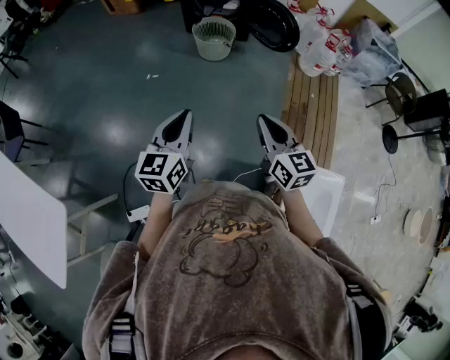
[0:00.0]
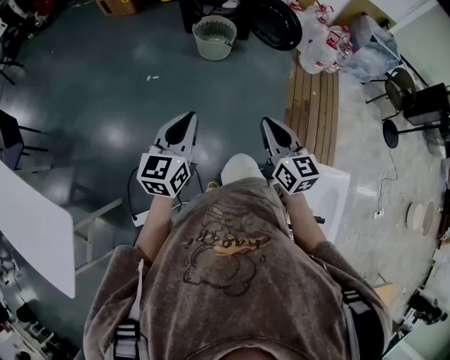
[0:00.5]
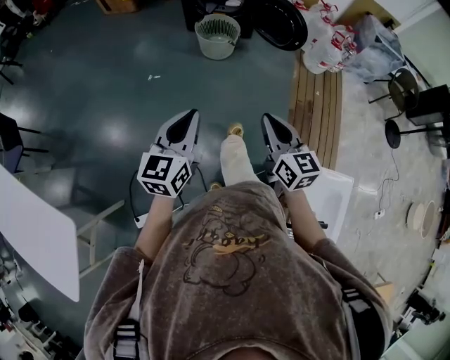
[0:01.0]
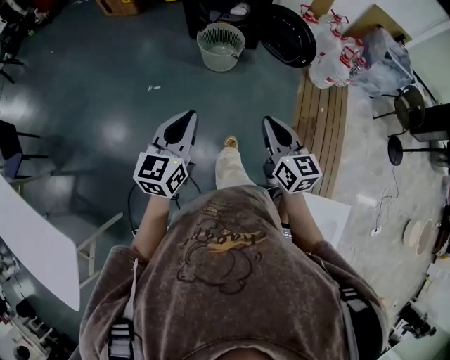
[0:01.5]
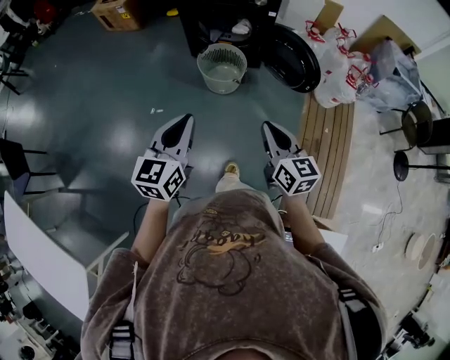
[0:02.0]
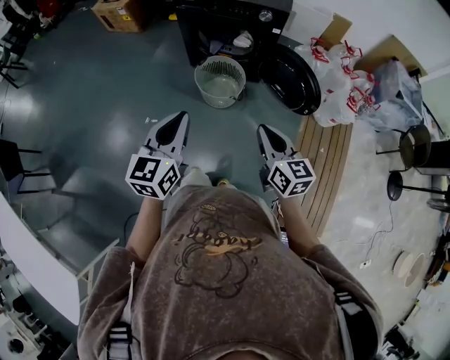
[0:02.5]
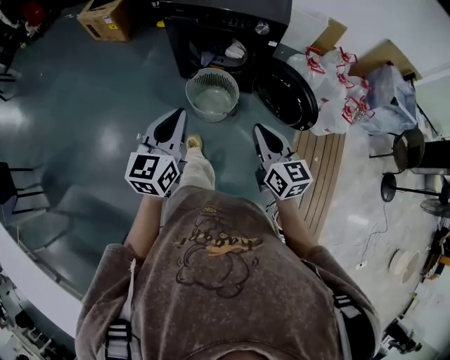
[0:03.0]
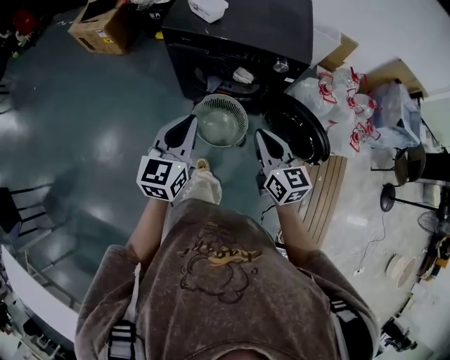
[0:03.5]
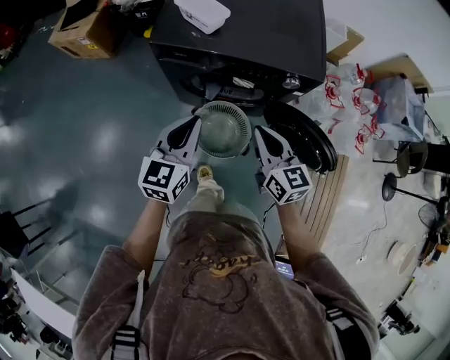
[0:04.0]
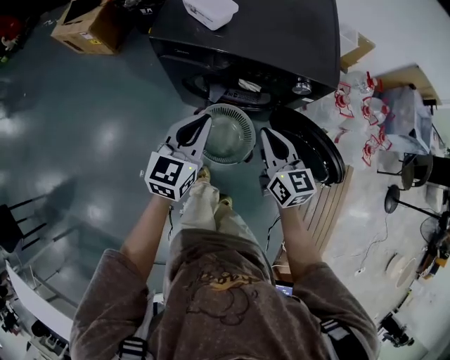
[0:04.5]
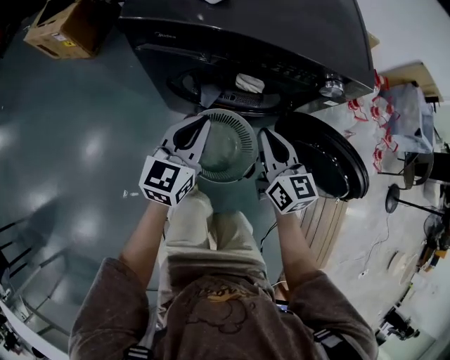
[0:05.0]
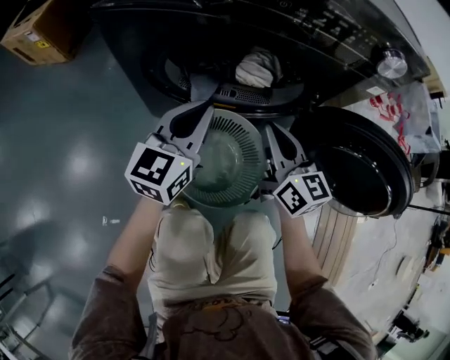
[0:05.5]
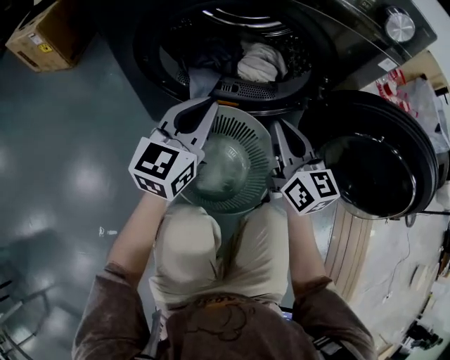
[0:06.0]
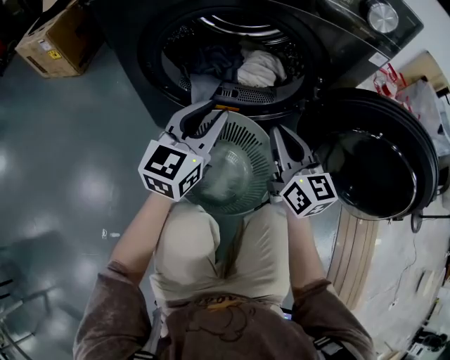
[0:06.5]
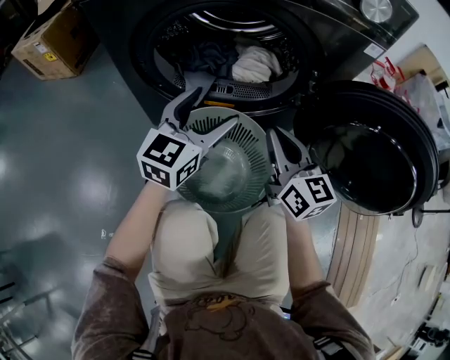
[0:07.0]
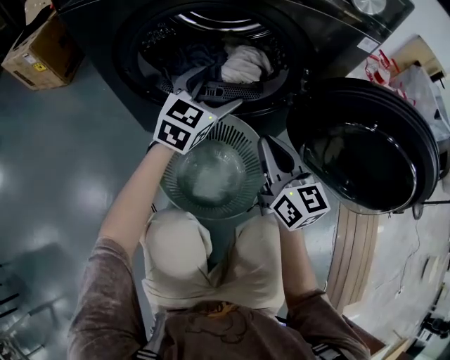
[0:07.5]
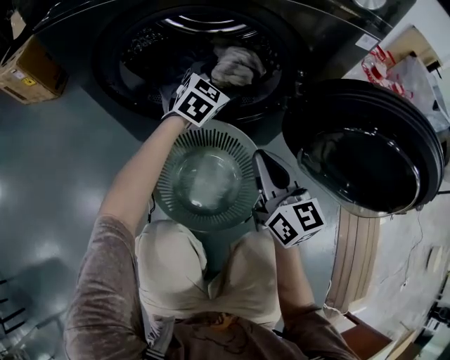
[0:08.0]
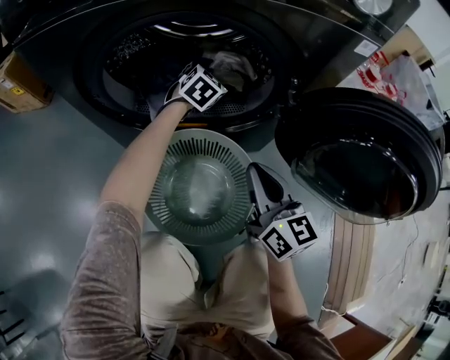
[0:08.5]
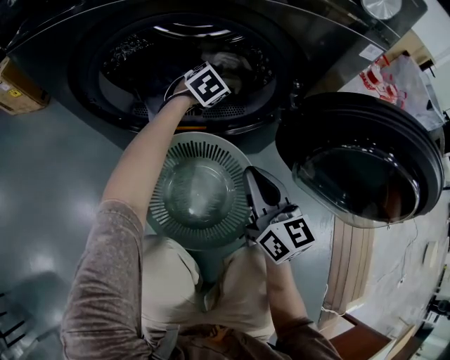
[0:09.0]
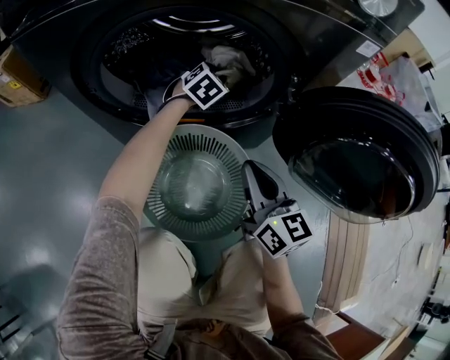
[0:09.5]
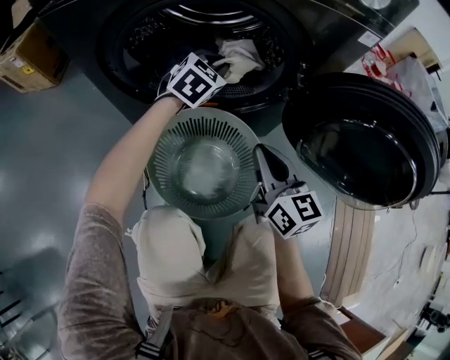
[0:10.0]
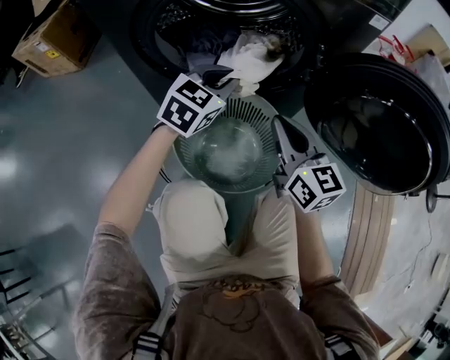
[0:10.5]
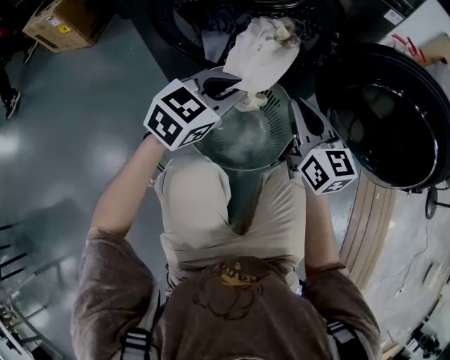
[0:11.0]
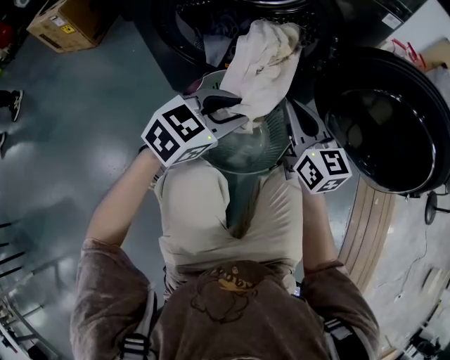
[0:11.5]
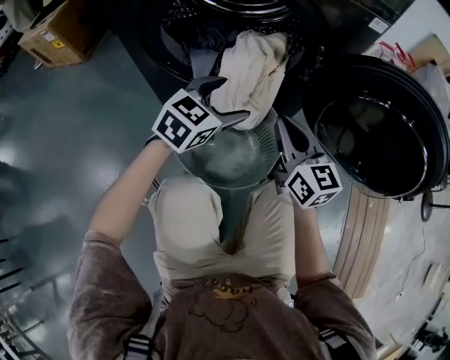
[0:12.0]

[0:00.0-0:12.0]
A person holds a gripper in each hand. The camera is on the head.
0:00.0 to 0:02.0: The grippers both shift forward by about 35 cm.
0:02.0 to 0:04.0: Both grippers are carried forward, about 60 cm.
0:04.0 to 0:06.0: The grippers both shift downward by roughly 40 cm.
0:06.0 to 0:08.0: The left gripper moves forward, to the right and downward, about 25 cm, rotates approximately 40 degrees, and opens. The right gripper ends up roughly 5 cm from where it was.
0:08.0 to 0:10.0: The left gripper goes downward and returns, some 10 cm each way, and closes.
0:10.0 to 0:12.0: The left gripper travels backward by some 20 cm, and opens up.

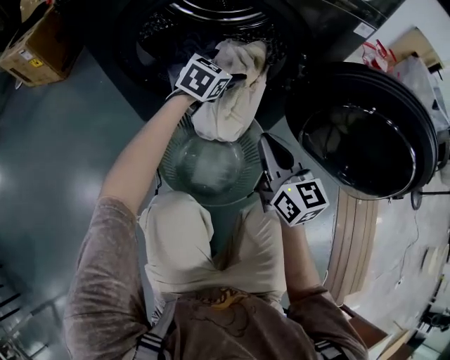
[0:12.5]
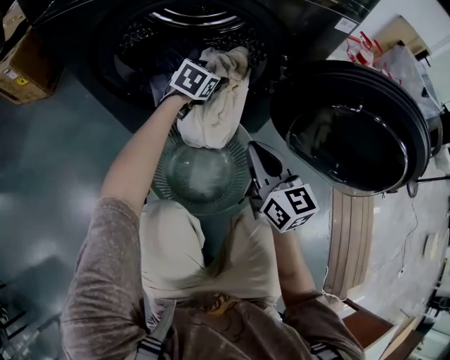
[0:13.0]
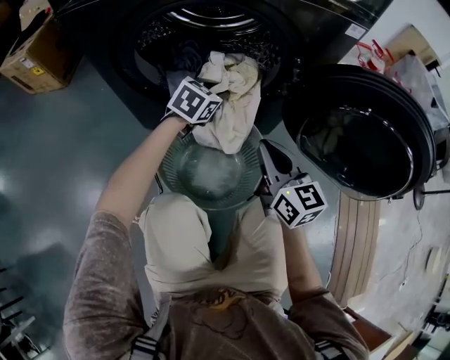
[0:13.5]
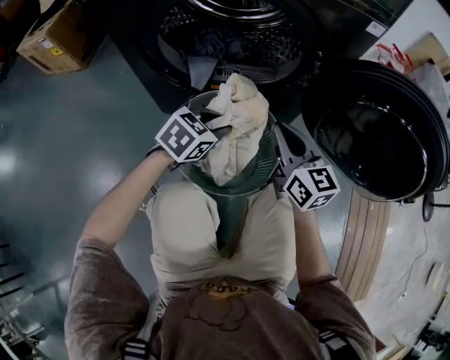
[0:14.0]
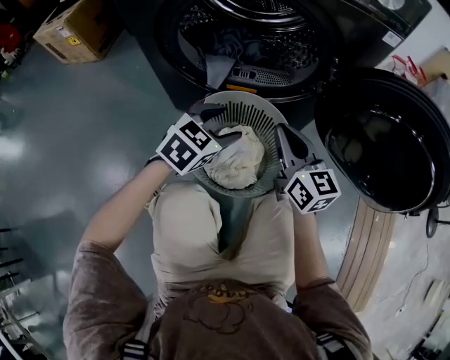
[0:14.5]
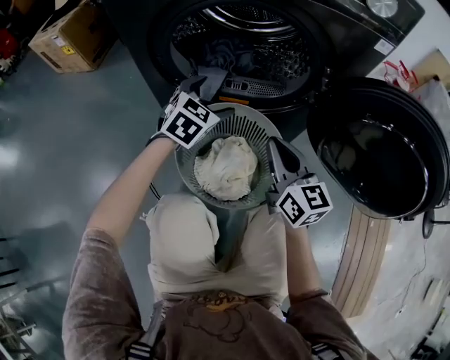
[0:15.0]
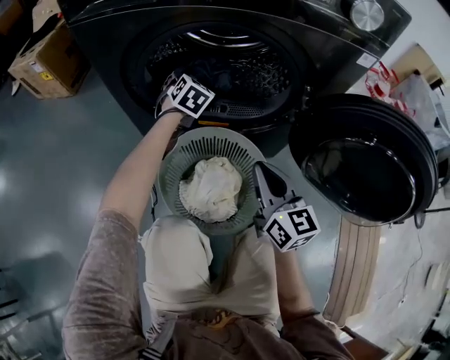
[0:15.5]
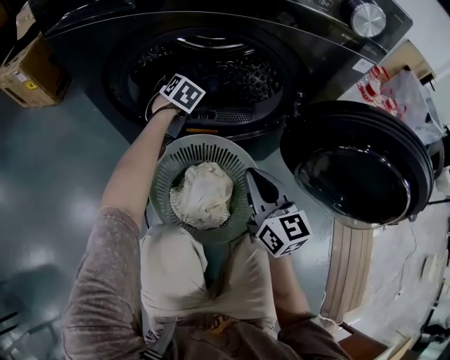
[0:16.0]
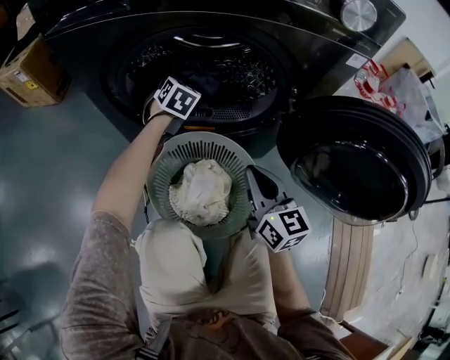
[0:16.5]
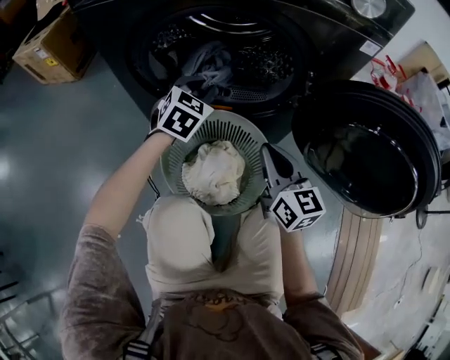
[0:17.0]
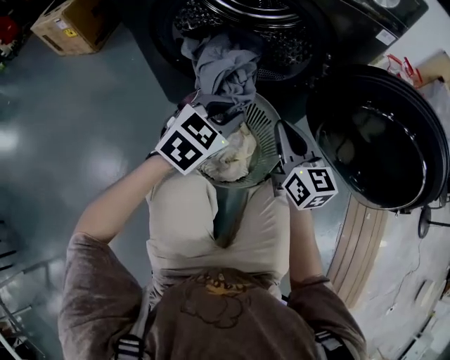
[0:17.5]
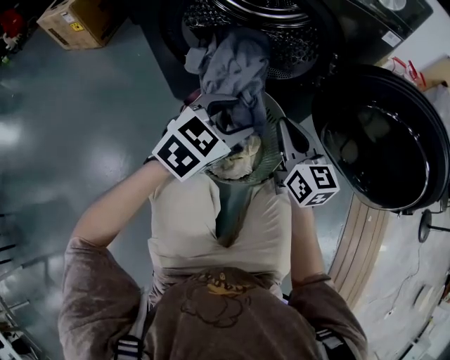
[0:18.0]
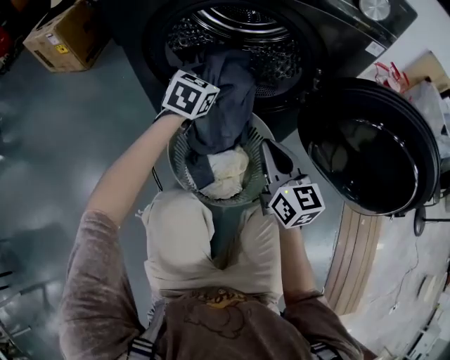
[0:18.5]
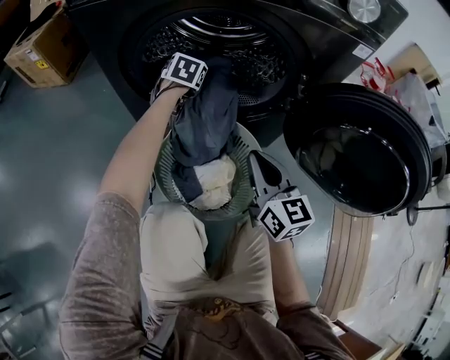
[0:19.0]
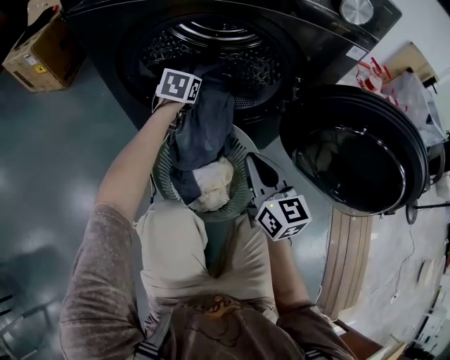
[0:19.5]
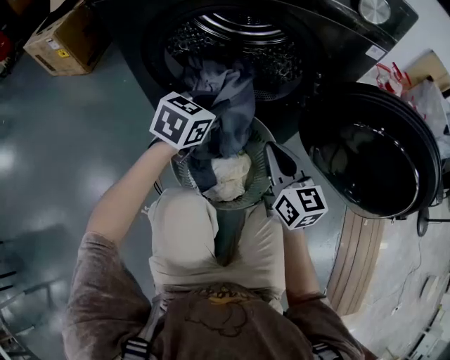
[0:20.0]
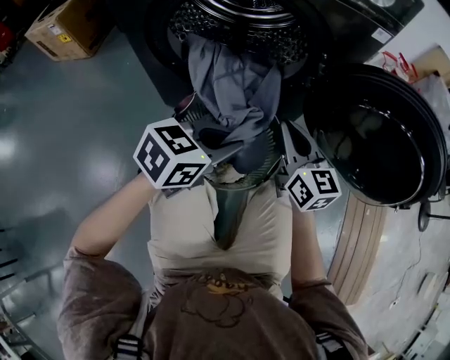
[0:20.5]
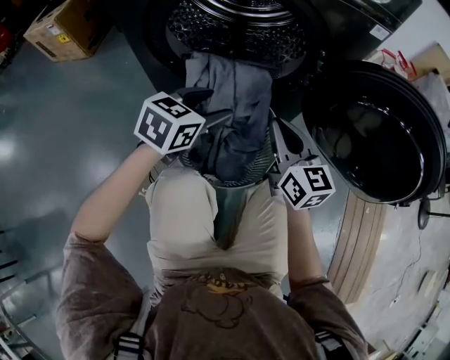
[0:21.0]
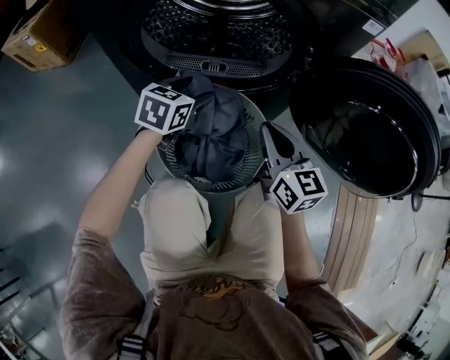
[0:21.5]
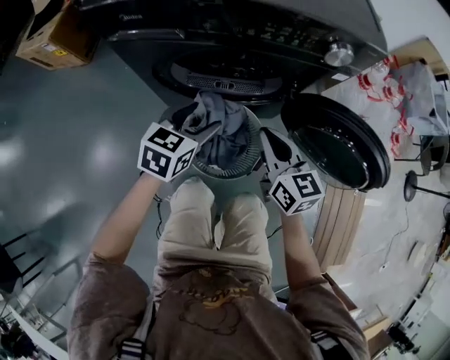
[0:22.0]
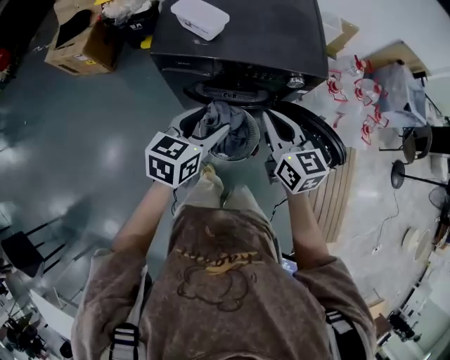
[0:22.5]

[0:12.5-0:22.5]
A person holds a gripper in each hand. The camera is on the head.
0:12.5 to 0:14.5: The left gripper heads backward, covering some 20 cm, and closes, then reopens.
0:14.5 to 0:16.5: The left gripper heads forward, covering roughly 30 cm, swivels some 30 degrees, and closes its fingers.
0:16.5 to 0:18.5: The left gripper moves backward, about 15 cm, swivels roughly 20 degrees, and opens.
0:18.5 to 0:20.5: The left gripper shifts some 20 cm backward, turns by approximately 30 degrees, and closes up.
0:20.5 to 0:22.5: Both grippers travel together upward, roughly 50 cm. The left gripper rotates roughly 20 degrees, and opens its fingers.

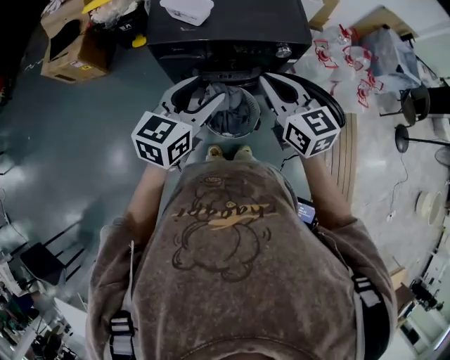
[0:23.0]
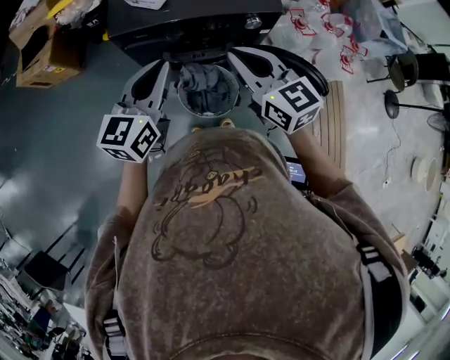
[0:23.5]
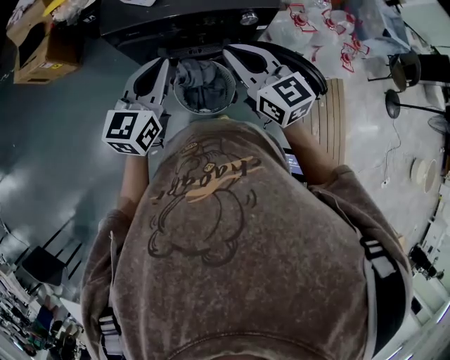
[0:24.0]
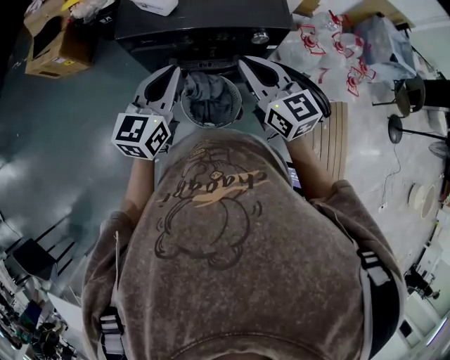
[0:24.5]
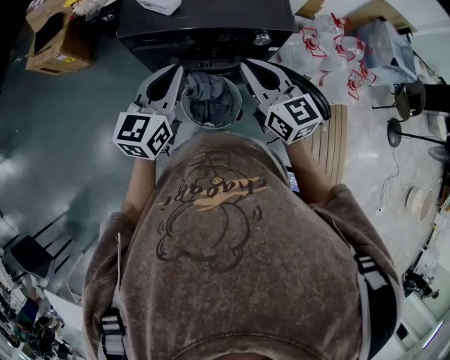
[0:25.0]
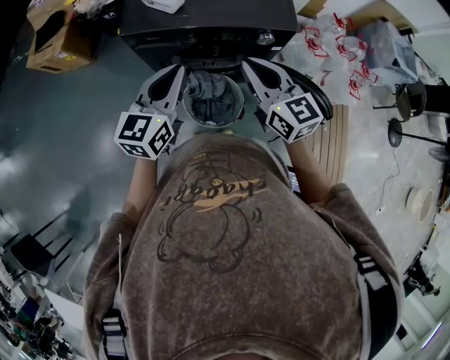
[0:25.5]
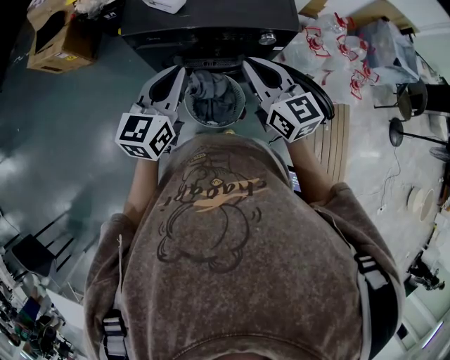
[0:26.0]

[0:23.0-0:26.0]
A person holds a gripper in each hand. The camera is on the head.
0:23.0 to 0:24.5: The left gripper closes, while the right gripper shifts by about 5 cm.
0:24.5 to 0:26.0: Both grippers stay about where they are.

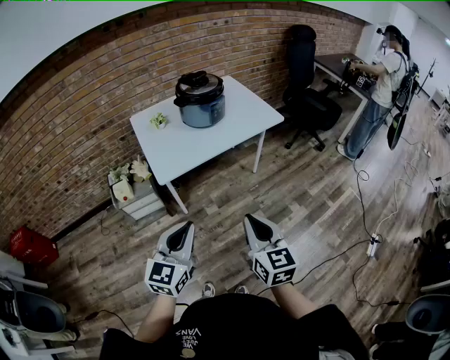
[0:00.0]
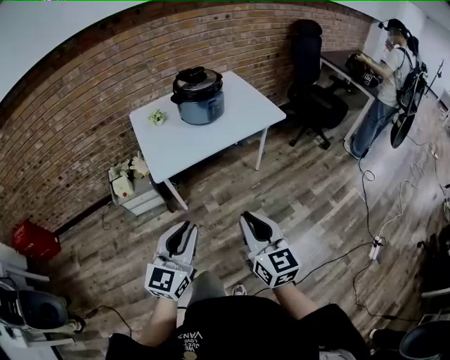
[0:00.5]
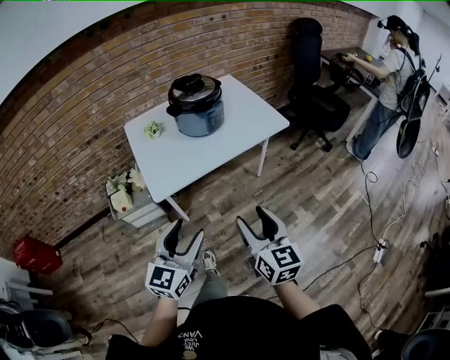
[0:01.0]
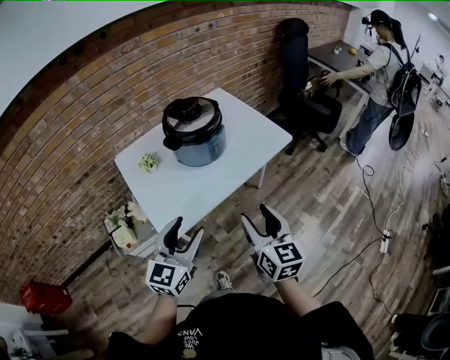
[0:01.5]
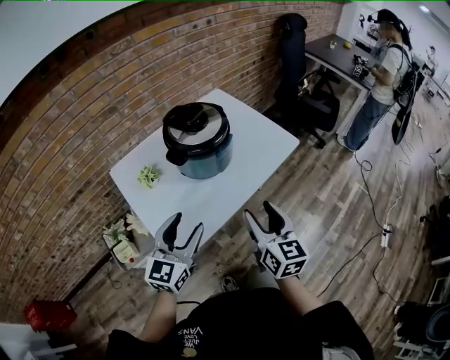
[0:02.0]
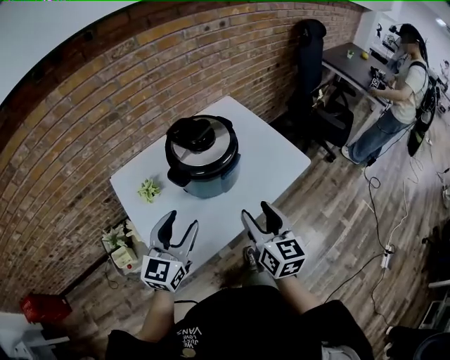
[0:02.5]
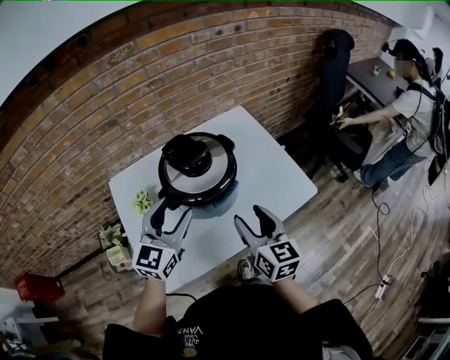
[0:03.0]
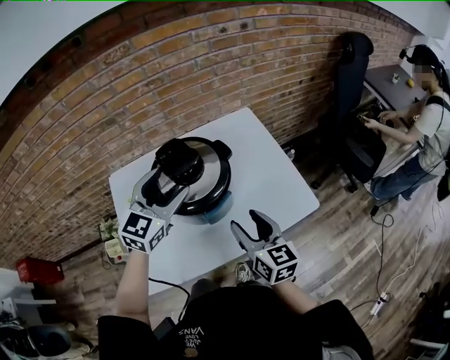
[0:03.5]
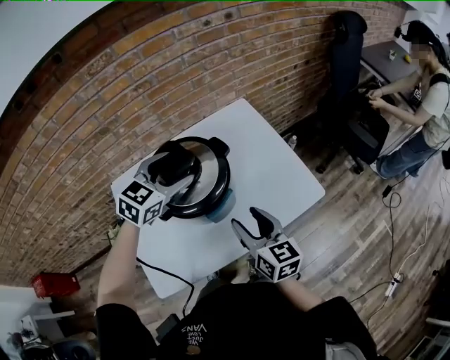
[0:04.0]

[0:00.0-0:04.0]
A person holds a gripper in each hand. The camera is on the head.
0:00.0 to 0:02.0: The grippers both shift forward by about 35 cm. The right gripper opens up. The left gripper opens.
0:02.0 to 0:04.0: The left gripper moves forward, about 35 cm, and turns by some 30 degrees, while the right gripper shifts approximately 25 cm forward, and changes its angle by about 30 degrees.
